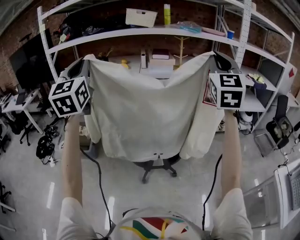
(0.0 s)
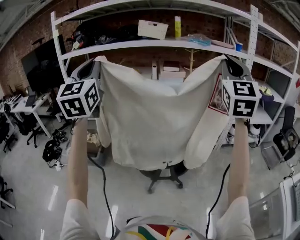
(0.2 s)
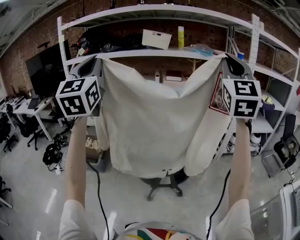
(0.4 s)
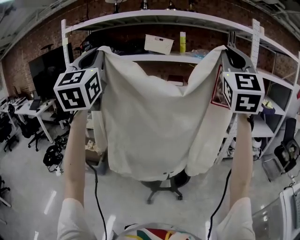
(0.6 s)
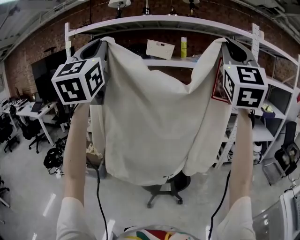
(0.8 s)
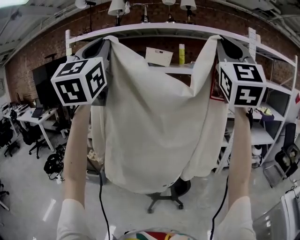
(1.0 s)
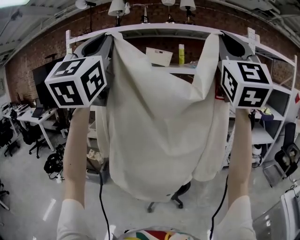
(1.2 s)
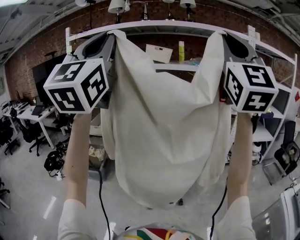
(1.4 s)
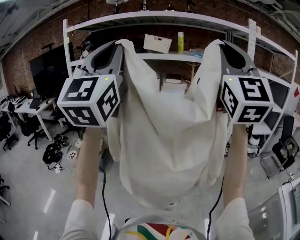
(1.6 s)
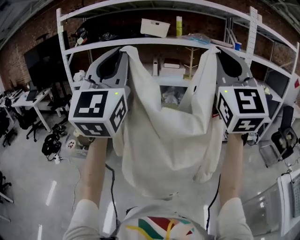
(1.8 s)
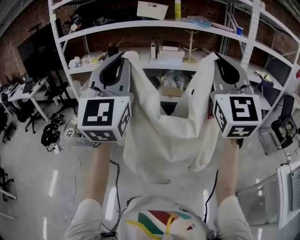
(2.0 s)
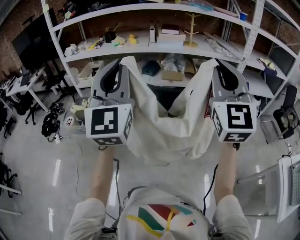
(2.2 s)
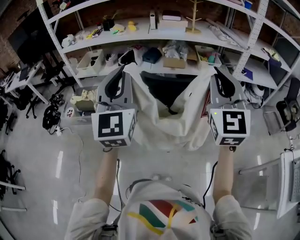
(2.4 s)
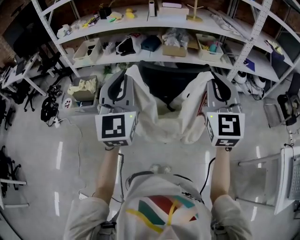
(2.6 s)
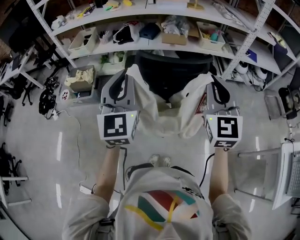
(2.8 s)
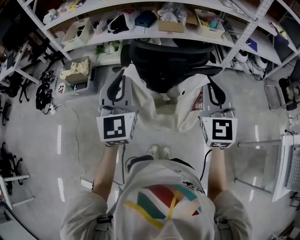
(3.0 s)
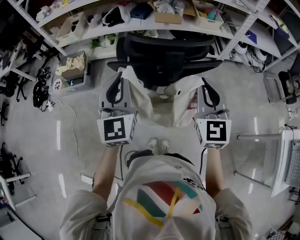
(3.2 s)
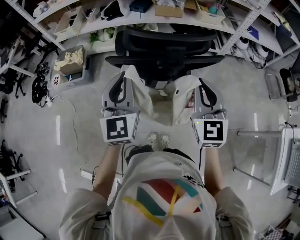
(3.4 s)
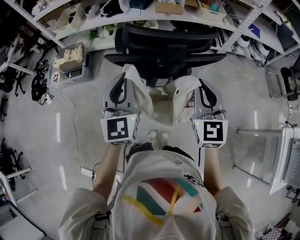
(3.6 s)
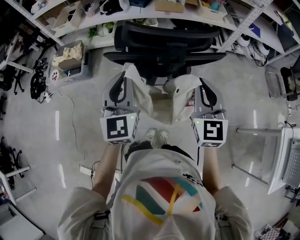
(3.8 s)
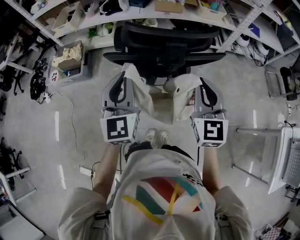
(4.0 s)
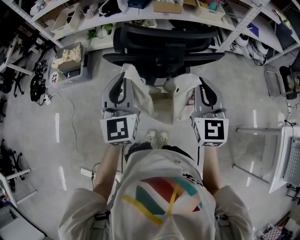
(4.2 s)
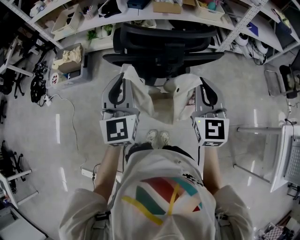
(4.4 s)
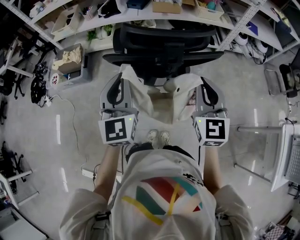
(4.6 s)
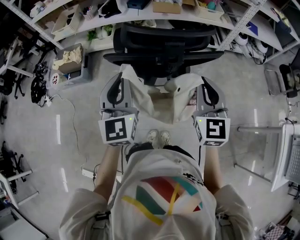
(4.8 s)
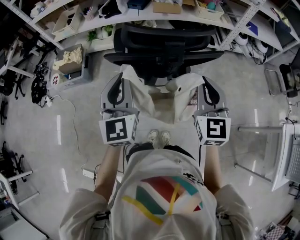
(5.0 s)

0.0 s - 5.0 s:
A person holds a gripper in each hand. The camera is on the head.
0.0 s - 1.6 s: The right gripper shifts approximately 25 cm backward, upward and to the left, and changes its angle by approximately 20 degrees, while the left gripper moves backward, upward and to the right, approximately 25 cm, and turns by about 20 degrees.
1.6 s - 3.4 s: The two grippers go roughly 50 cm downward. The right gripper points its fingers roughly 40 degrees further downward, while the left gripper tilts its fingers approximately 40 degrees downward.
3.4 s - 5.0 s: The grippers move only a little.

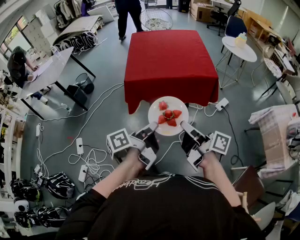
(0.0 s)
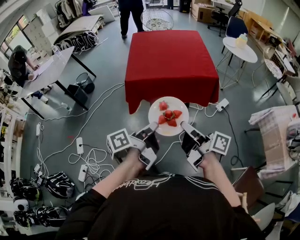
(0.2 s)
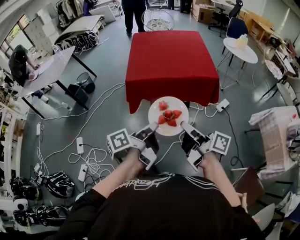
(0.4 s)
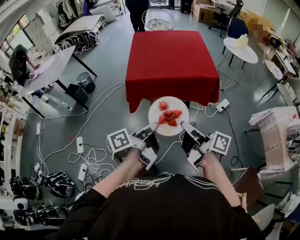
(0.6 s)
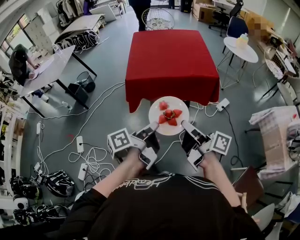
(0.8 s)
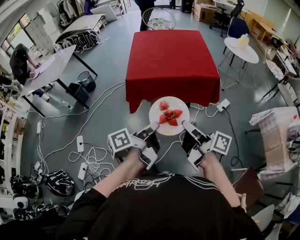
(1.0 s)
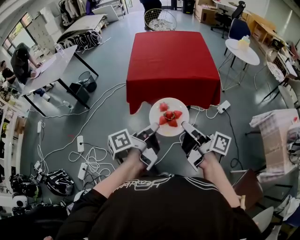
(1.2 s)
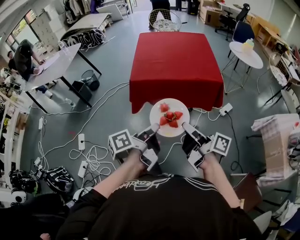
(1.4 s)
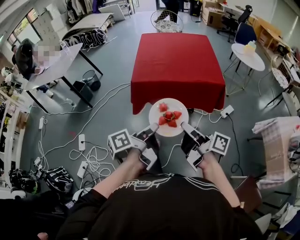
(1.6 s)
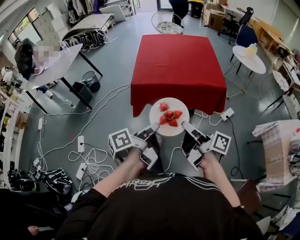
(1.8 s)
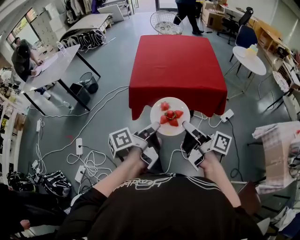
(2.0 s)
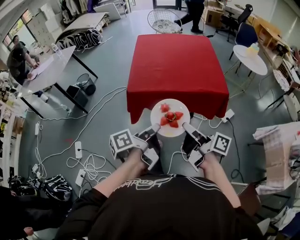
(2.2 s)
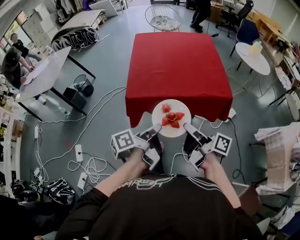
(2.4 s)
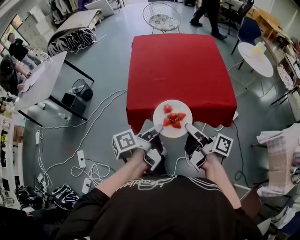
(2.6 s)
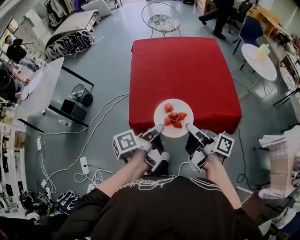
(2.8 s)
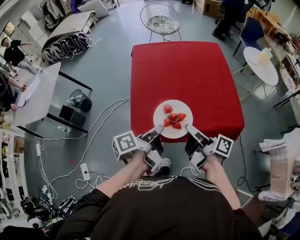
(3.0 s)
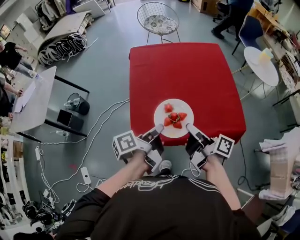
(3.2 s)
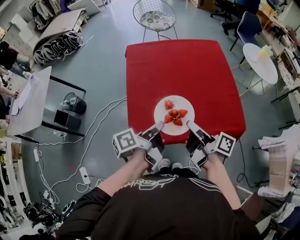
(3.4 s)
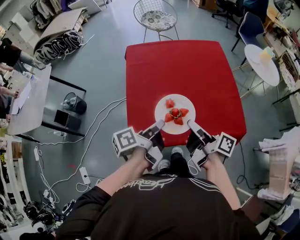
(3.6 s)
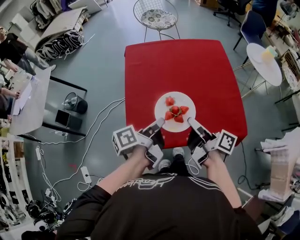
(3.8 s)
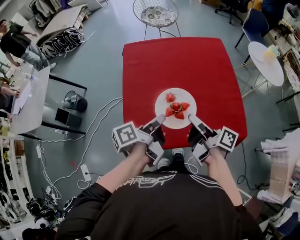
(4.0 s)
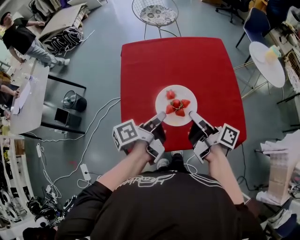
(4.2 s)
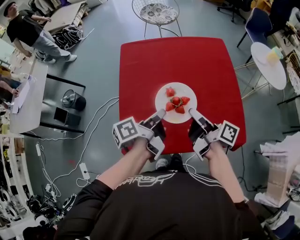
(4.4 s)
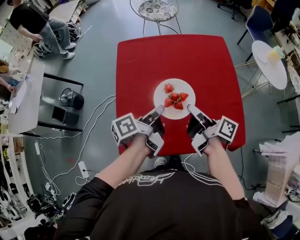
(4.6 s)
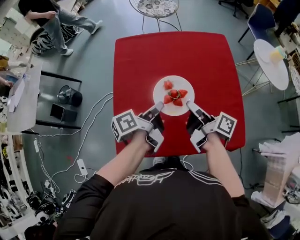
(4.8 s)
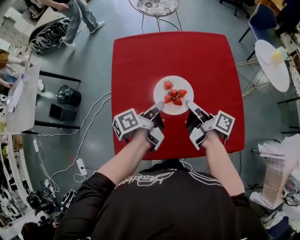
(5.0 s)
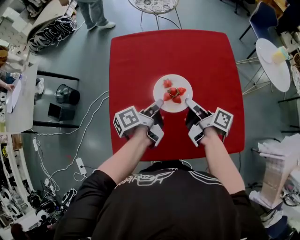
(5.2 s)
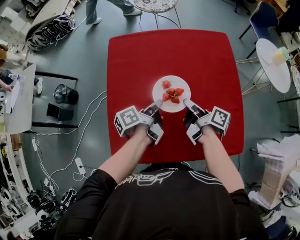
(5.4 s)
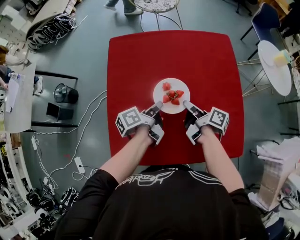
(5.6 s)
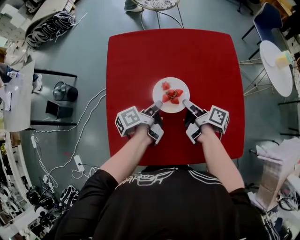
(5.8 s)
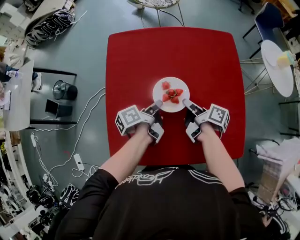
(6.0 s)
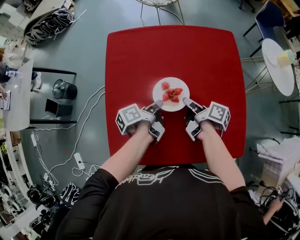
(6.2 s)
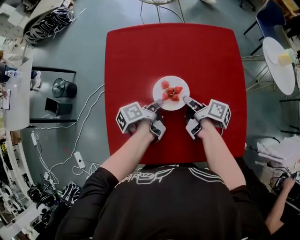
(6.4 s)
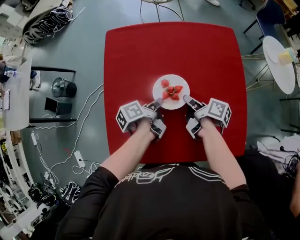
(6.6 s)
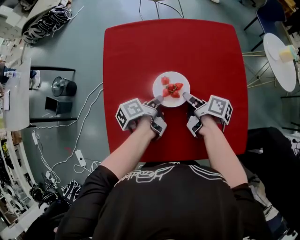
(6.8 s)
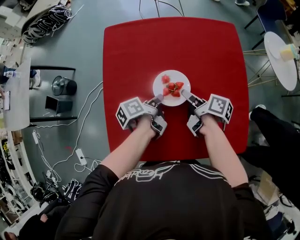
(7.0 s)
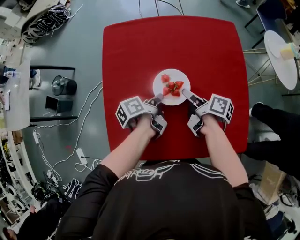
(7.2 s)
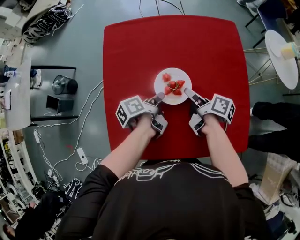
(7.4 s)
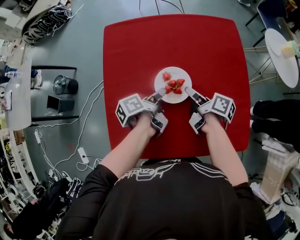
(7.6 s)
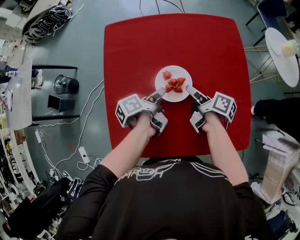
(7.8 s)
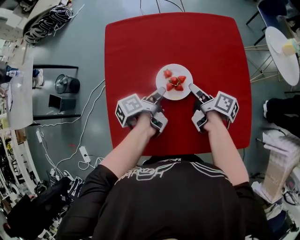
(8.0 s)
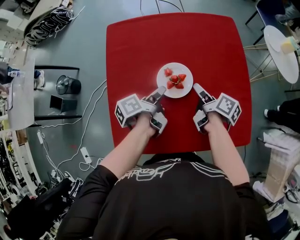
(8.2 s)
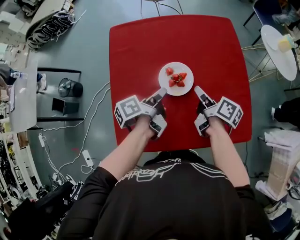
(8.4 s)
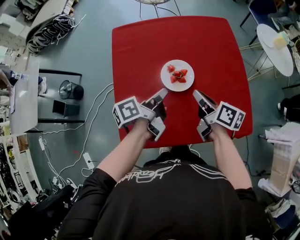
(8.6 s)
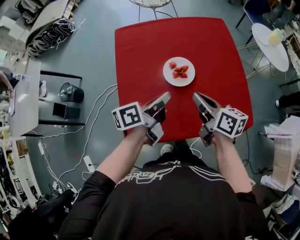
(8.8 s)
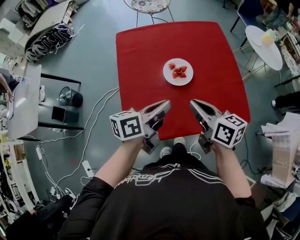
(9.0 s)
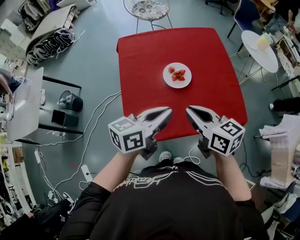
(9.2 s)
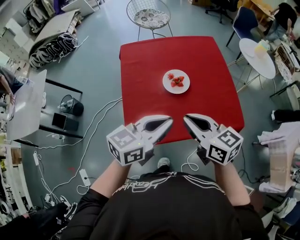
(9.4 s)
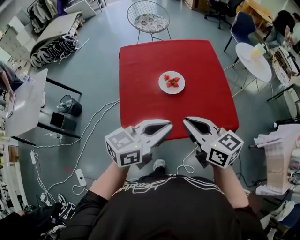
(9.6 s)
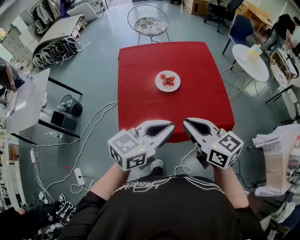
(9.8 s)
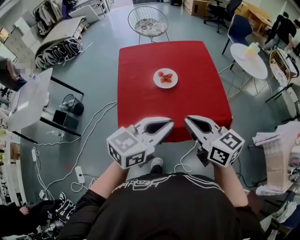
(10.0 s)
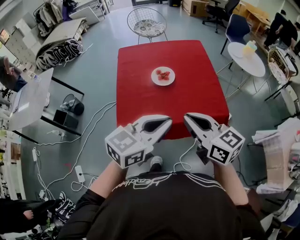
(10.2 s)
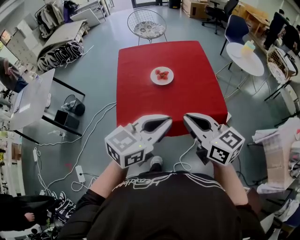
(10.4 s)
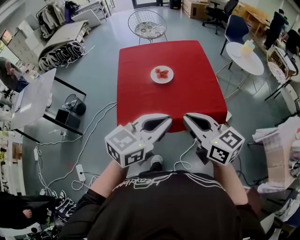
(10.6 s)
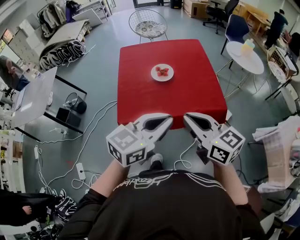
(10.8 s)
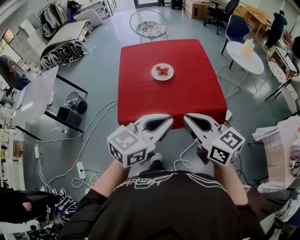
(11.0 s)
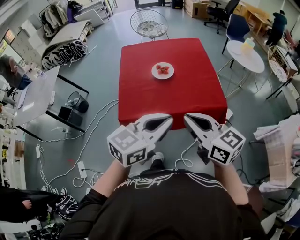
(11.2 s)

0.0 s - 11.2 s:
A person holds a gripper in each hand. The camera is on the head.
1.6 s - 3.2 s: The right gripper changes place by about 40 cm.
3.2 s - 4.8 s: The right gripper moves some 20 cm.
4.8 s - 6.4 s: The right gripper travels downward by approximately 10 cm, and changes its angle by roughly 20 degrees.
6.4 s - 8.0 s: The right gripper opens.
8.0 s - 9.6 s: The right gripper shifts by about 35 cm, twists about 60 degrees counterclockwise, seen from behind, and closes its fingers.
9.6 s - 11.2 s: The right gripper changes place by about 20 cm.

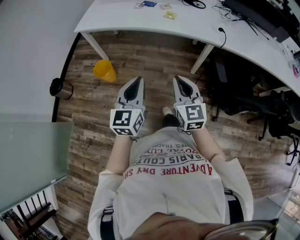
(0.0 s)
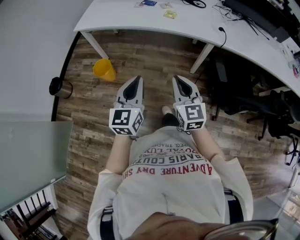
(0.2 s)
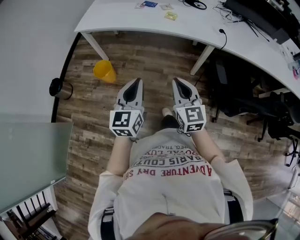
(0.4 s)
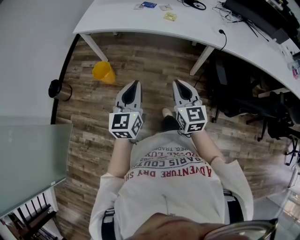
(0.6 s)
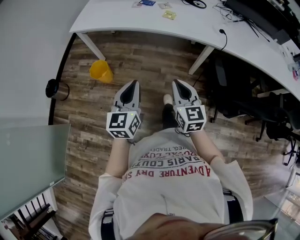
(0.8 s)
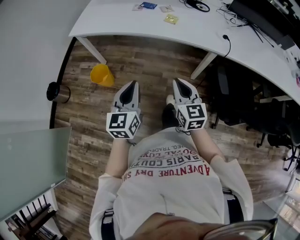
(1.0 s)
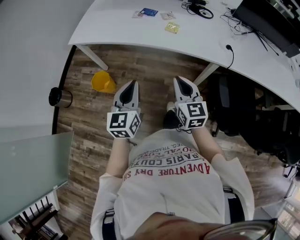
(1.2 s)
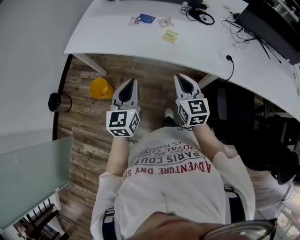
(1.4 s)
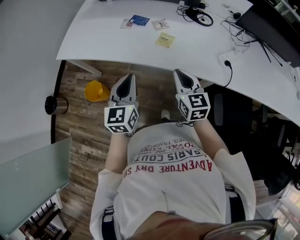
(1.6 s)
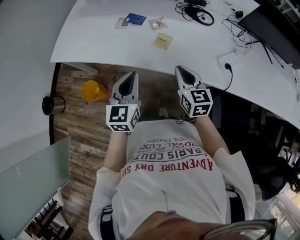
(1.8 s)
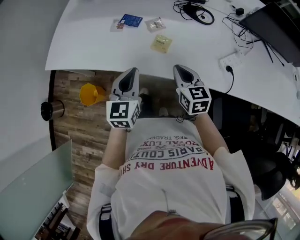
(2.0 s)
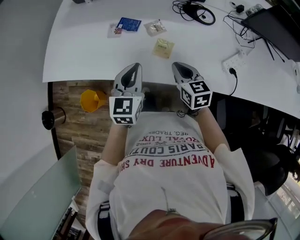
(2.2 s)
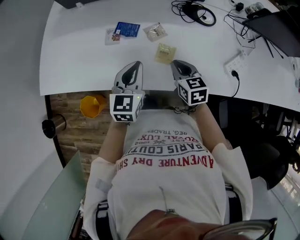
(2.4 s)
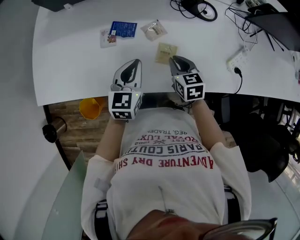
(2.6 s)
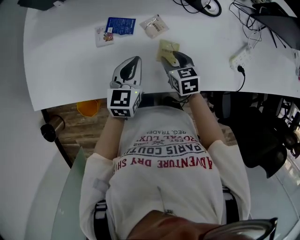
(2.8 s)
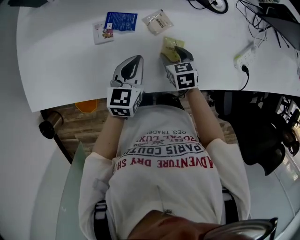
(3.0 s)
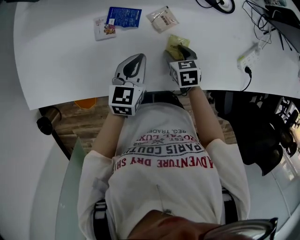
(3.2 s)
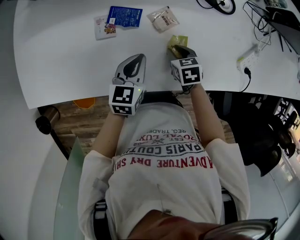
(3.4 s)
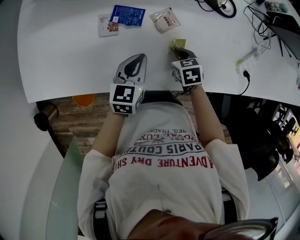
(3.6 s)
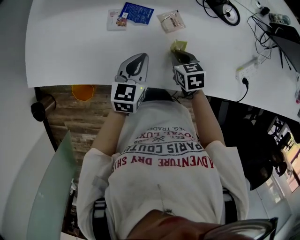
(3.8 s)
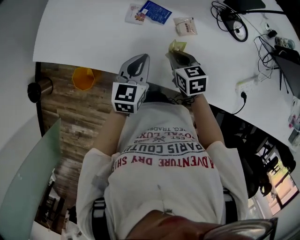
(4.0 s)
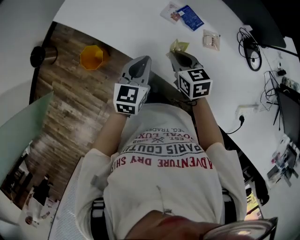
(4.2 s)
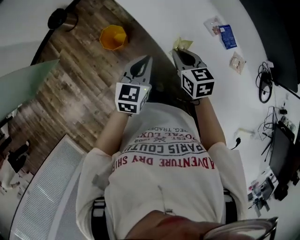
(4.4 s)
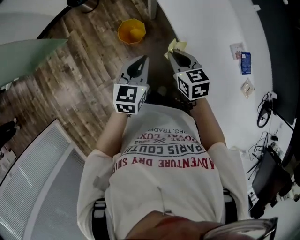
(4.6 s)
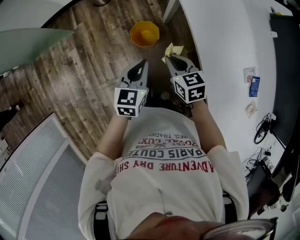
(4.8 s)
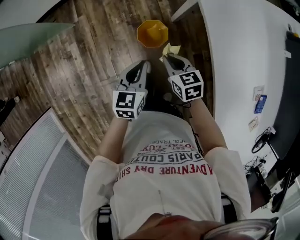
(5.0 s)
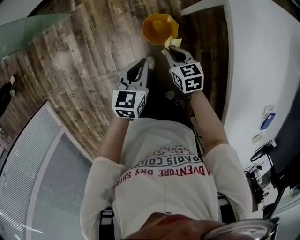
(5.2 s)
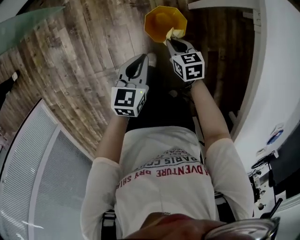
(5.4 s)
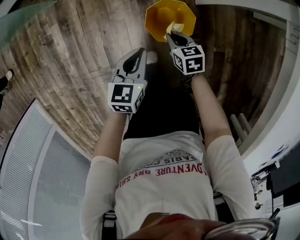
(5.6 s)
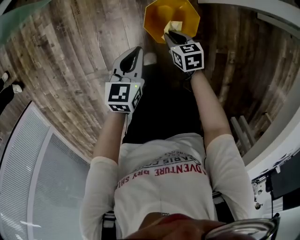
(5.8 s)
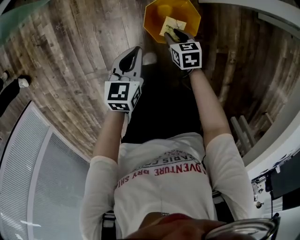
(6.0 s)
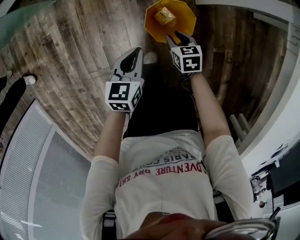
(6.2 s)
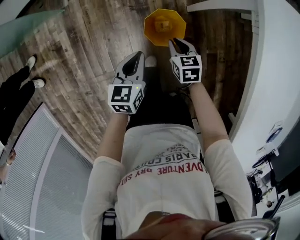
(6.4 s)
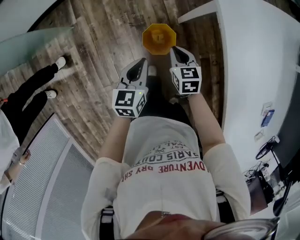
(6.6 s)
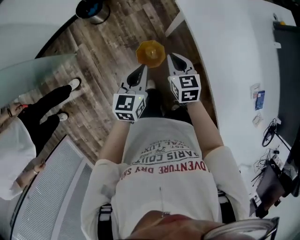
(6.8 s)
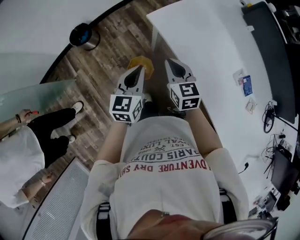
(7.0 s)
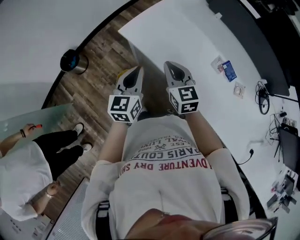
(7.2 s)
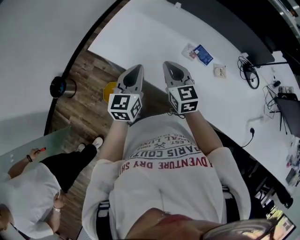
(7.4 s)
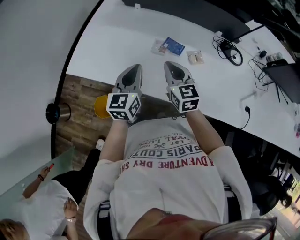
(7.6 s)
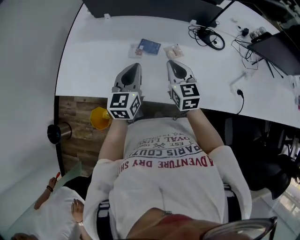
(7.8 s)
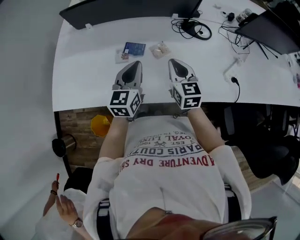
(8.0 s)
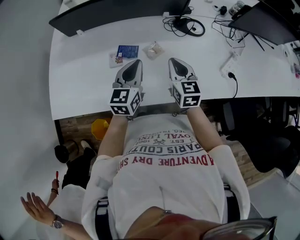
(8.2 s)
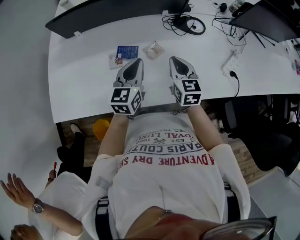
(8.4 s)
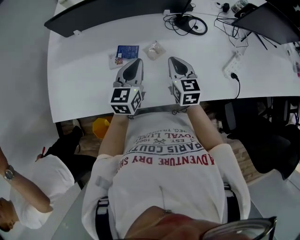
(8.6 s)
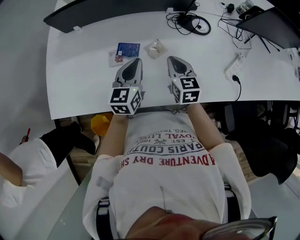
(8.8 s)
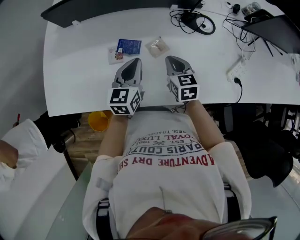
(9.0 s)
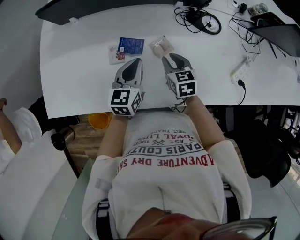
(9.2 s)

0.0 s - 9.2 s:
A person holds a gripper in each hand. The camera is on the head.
0.0 s - 1.6 s: The grippers both shift forward by roughly 40 cm.
1.6 s - 3.0 s: Both grippers move forward and downward, approximately 40 cm. The right gripper angles its fingers downward, by approximately 40 degrees, and opens. The left gripper changes its angle by about 30 degrees.
3.0 s - 4.6 s: The pair of grippers is taken about 40 cm. The left gripper swivels roughly 70 degrees. Meanwhile the right gripper rotates some 70 degrees, and closes.
4.6 s - 6.2 s: The left gripper heads downward, forward and to the left, covering some 50 cm, and swivels some 30 degrees. The right gripper goes approximately 60 cm downward and forward, changes its angle by roughly 20 degrees, and opens up.
6.2 s - 7.6 s: The pair of grippers is taken about 50 cm. Both grippers move upward, some 60 cm. The left gripper tilts its fingers about 30 degrees upward, while the right gripper points its fingers some 40 degrees further upward, and closes its fingers.
7.6 s - 9.2 s: The right gripper moves approximately 25 cm, and changes its angle by approximately 30 degrees. The left gripper shifts by roughly 25 cm, and rotates roughly 30 degrees.
